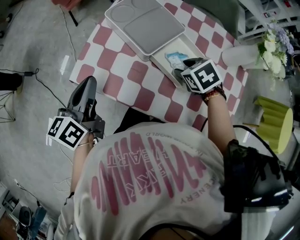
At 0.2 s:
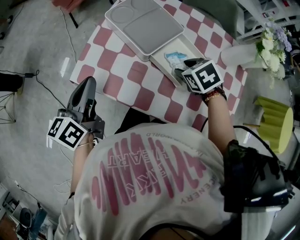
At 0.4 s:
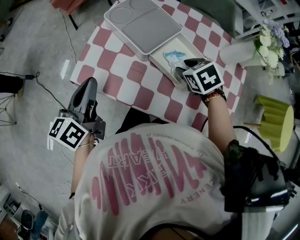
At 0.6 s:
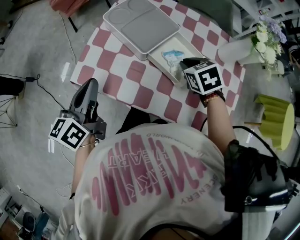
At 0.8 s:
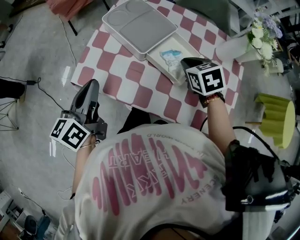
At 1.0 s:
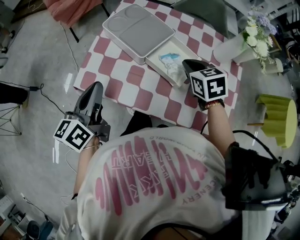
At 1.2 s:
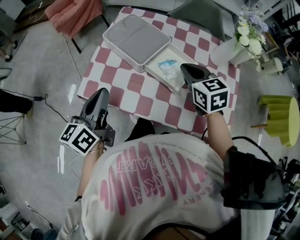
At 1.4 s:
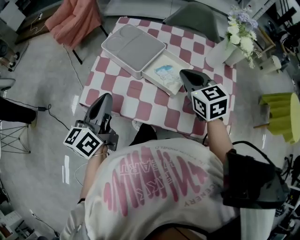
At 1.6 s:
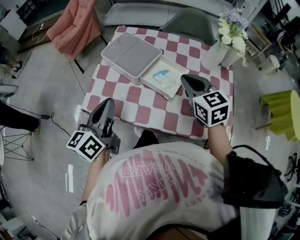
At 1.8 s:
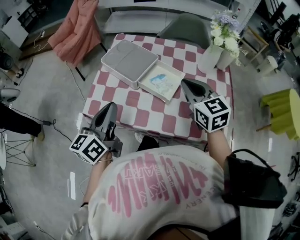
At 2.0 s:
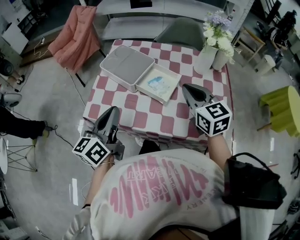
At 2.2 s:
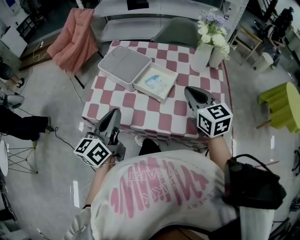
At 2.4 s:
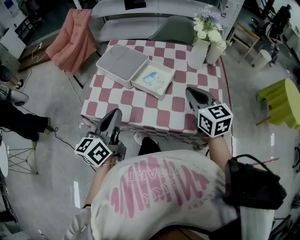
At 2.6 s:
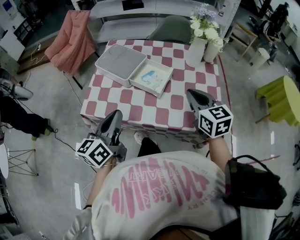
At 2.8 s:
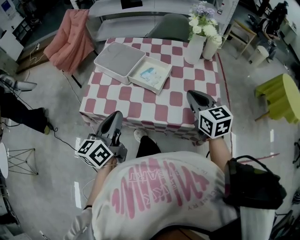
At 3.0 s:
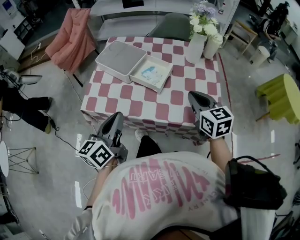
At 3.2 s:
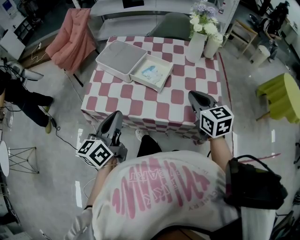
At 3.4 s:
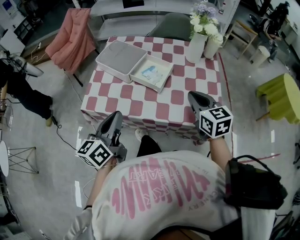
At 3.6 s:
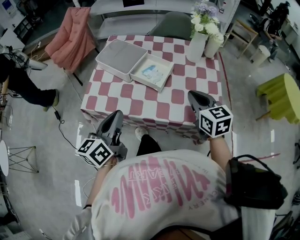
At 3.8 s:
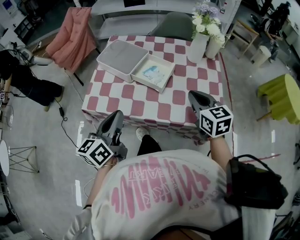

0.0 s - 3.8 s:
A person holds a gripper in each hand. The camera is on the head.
0.0 s - 1.2 s: The right gripper travels upward by about 10 cm, tilts its fingers some 40 degrees upward, and closes; the left gripper shifts by approximately 5 cm.
1.2 s - 2.6 s: The right gripper travels backward and to the right by approximately 20 cm. The left gripper is displaced to the right and backward by approximately 15 cm.
2.6 s - 3.8 s: There are only small adjustments of the grippers.

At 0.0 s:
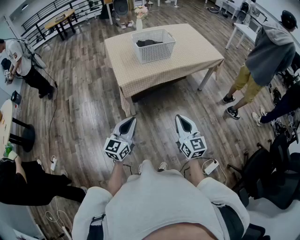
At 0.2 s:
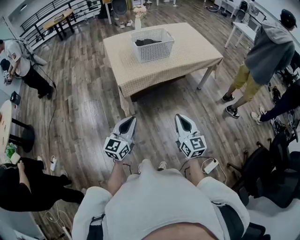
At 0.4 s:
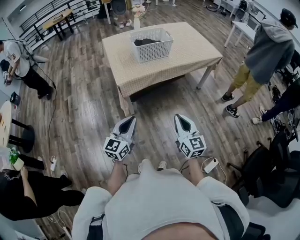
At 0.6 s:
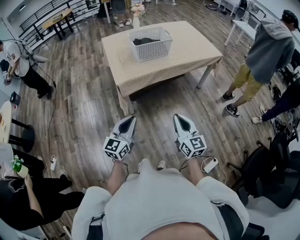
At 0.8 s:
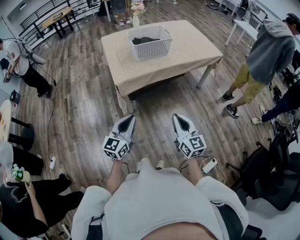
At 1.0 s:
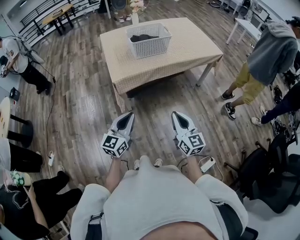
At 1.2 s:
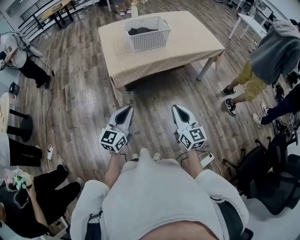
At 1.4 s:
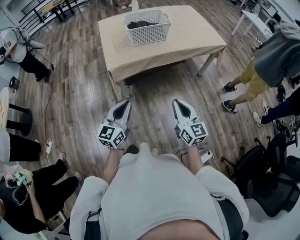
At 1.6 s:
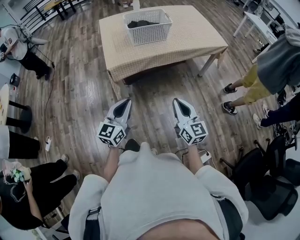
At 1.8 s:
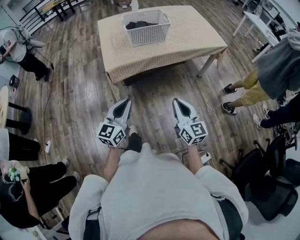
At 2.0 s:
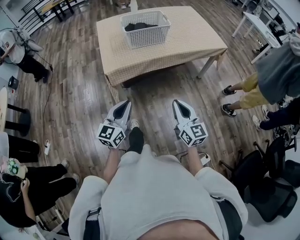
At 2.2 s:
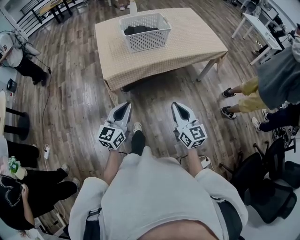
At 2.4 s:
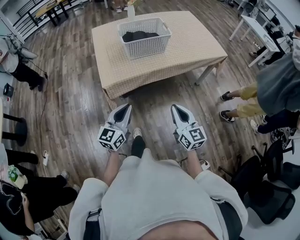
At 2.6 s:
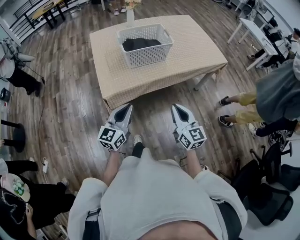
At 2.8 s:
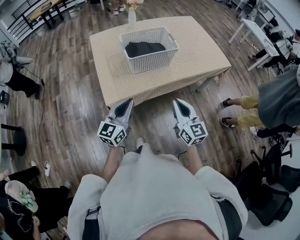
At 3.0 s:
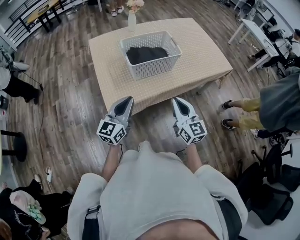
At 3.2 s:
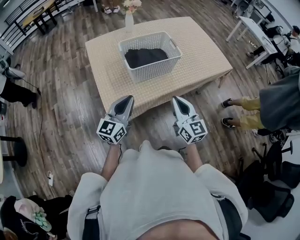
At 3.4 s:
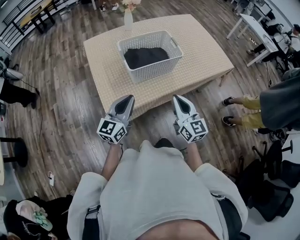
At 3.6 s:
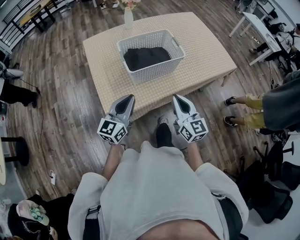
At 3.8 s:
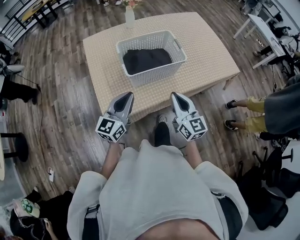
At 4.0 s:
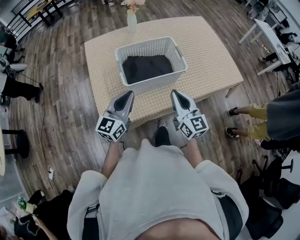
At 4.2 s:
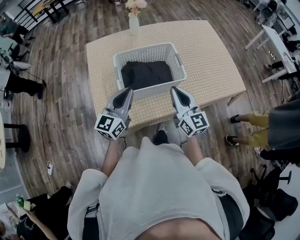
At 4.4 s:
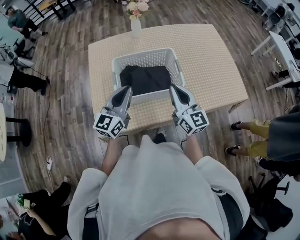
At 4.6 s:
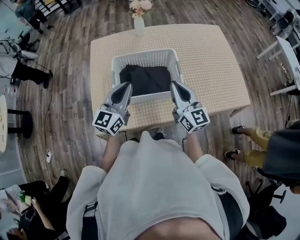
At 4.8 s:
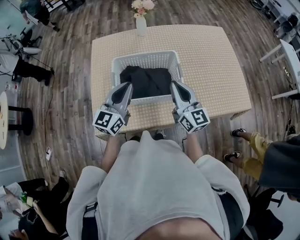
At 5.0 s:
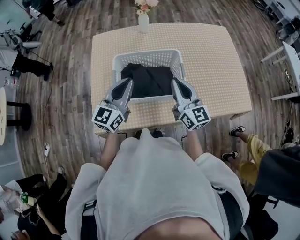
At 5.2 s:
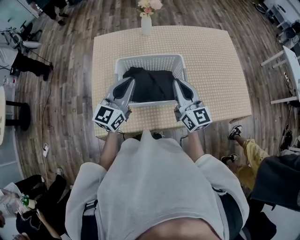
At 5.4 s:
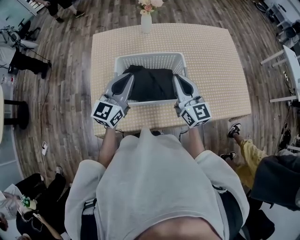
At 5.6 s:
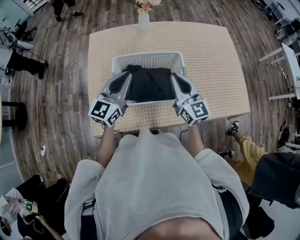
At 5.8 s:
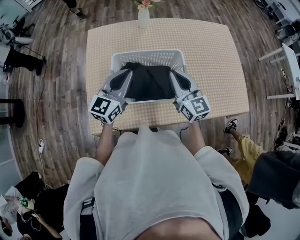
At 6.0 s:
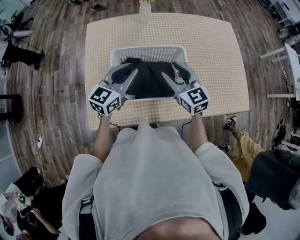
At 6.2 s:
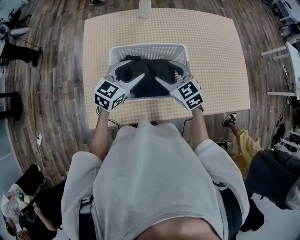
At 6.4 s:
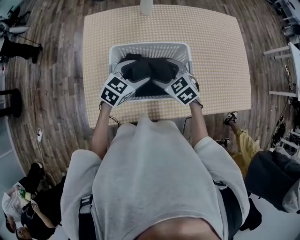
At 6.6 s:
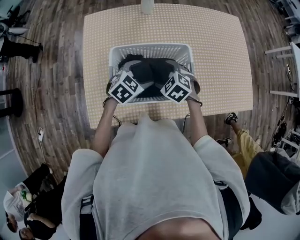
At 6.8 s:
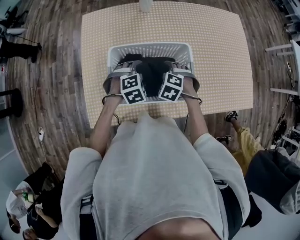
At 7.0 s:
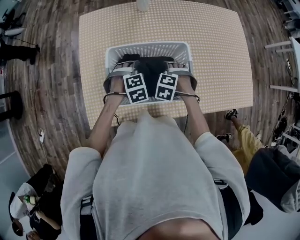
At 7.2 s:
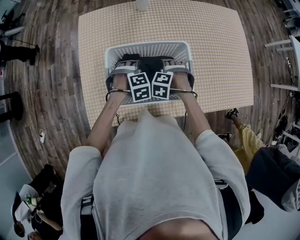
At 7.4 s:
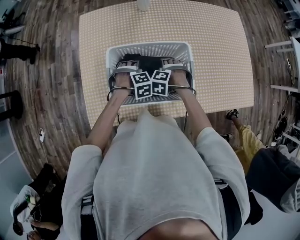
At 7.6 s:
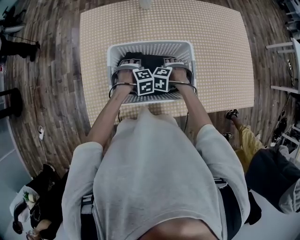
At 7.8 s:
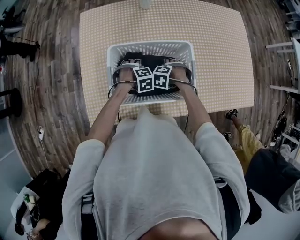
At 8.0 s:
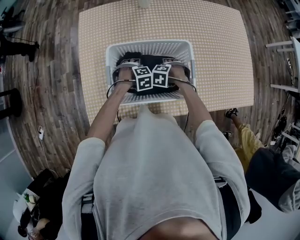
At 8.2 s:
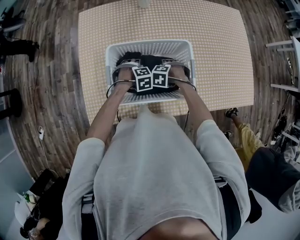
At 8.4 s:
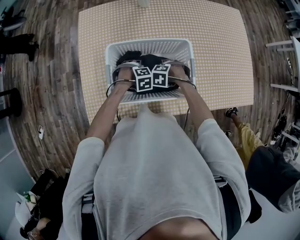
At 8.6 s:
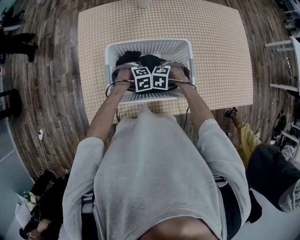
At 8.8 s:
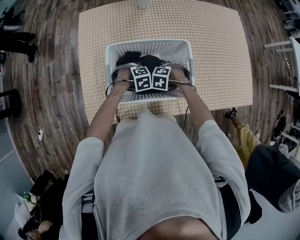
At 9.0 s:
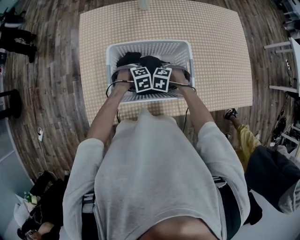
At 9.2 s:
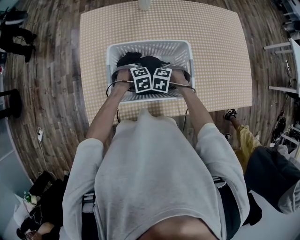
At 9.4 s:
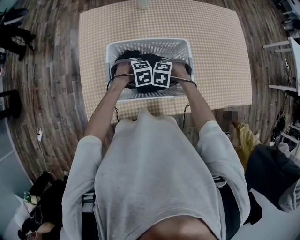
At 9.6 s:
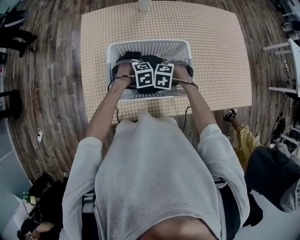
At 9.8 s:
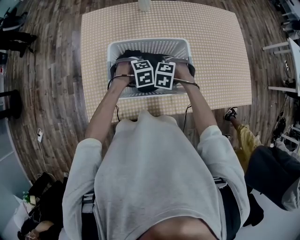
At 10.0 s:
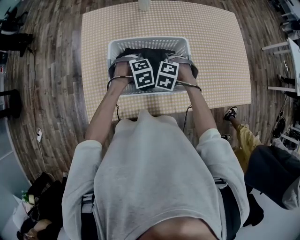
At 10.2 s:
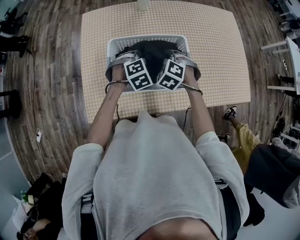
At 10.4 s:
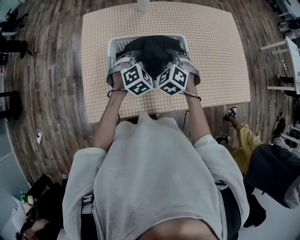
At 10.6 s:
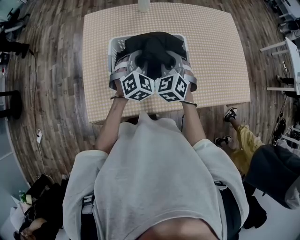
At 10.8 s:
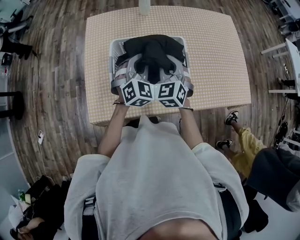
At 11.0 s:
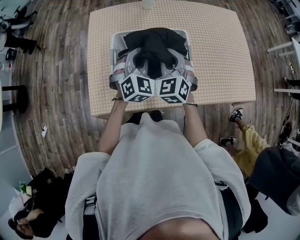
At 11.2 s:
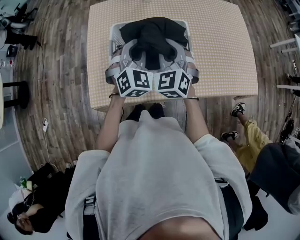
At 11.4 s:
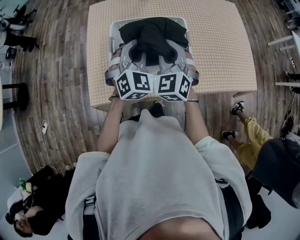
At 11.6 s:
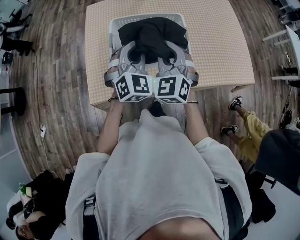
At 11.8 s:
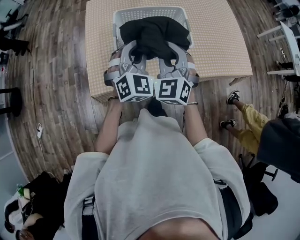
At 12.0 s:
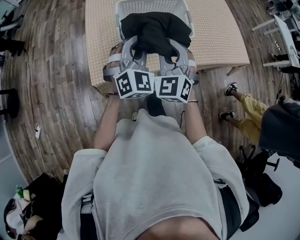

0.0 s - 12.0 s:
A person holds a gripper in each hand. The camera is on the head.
0.0 s - 1.6 s: The grippers both shift to the right and forward by some 10 cm.
1.6 s - 3.0 s: Both grippers travel together forward, some 35 cm.
3.0 s - 4.4 s: Both grippers travel together forward, some 30 cm.
4.4 s - 6.0 s: The grippers both shift forward by roughly 15 cm. The right gripper rotates approximately 30 degrees, and opens up.
6.0 s - 7.6 s: The grippers both shift downward by some 25 cm. The right gripper angles its fingers downward, by approximately 70 degrees, and opens its fingers, while the left gripper angles its fingers downward, by about 70 degrees, and opens.
7.6 s - 9.0 s: The left gripper closes. The right gripper closes its fingers.
9.0 s - 10.4 s: The two grippers go about 20 cm upward. The right gripper tips its fingers upward by approximately 40 degrees. The left gripper tips its fingers upward by roughly 40 degrees.
10.4 s - 12.0 s: Both grippers move backward and upward, about 30 cm. The right gripper angles its fingers upward, by some 30 degrees, while the left gripper points its fingers about 30 degrees further upward.

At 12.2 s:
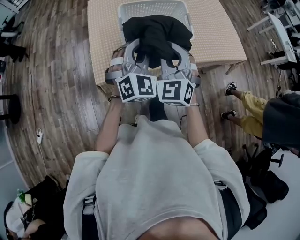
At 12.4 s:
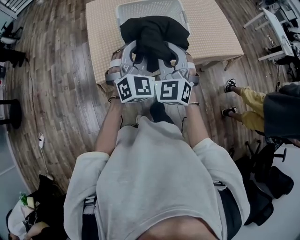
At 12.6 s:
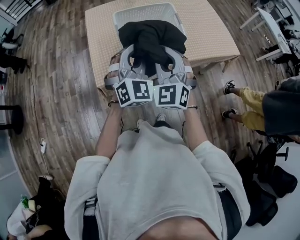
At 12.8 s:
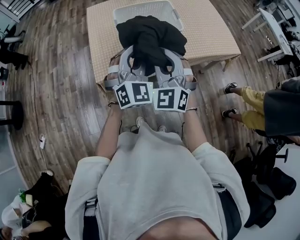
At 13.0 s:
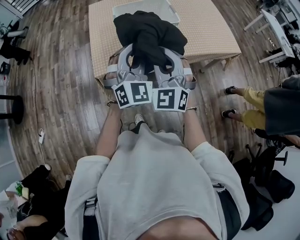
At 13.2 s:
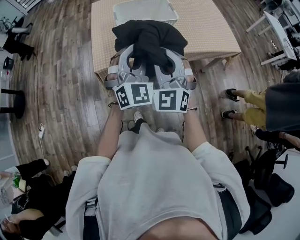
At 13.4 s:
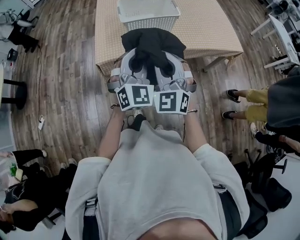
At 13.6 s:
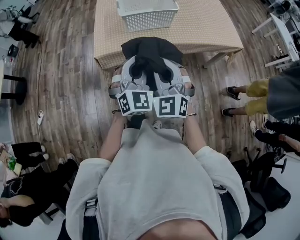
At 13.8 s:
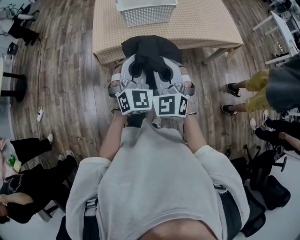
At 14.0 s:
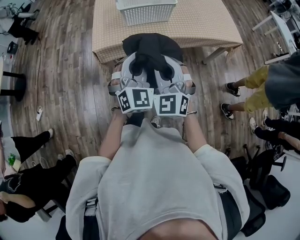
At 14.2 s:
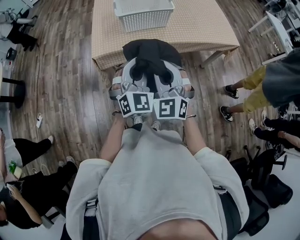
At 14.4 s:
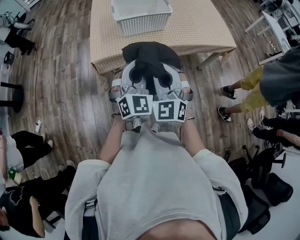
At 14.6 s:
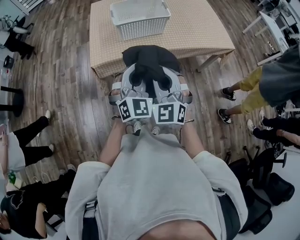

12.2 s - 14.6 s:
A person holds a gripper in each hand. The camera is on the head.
12.2 s - 13.4 s: Both grippers move backward, about 20 cm.
13.4 s - 14.6 s: The two grippers go roughly 5 cm backward.

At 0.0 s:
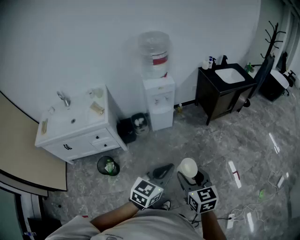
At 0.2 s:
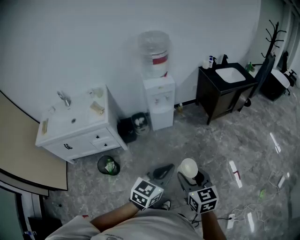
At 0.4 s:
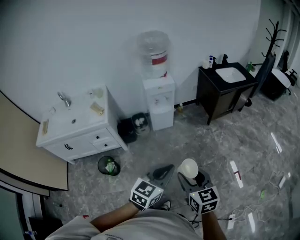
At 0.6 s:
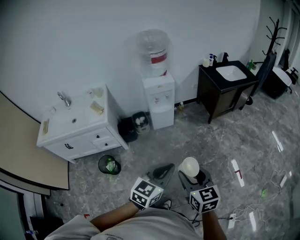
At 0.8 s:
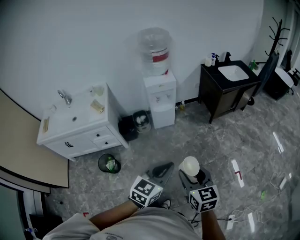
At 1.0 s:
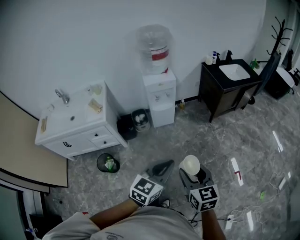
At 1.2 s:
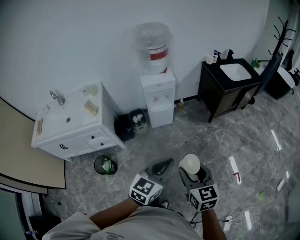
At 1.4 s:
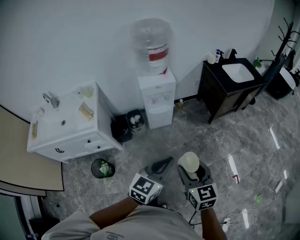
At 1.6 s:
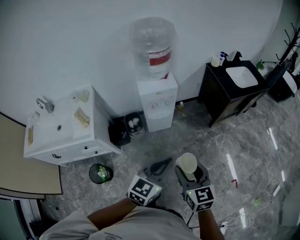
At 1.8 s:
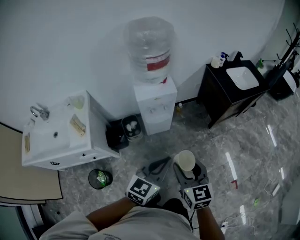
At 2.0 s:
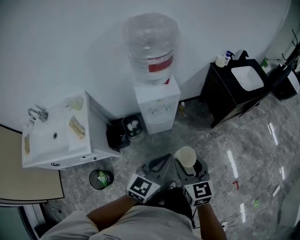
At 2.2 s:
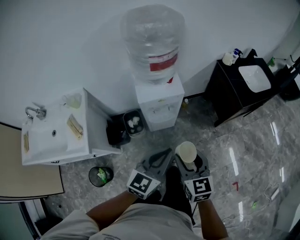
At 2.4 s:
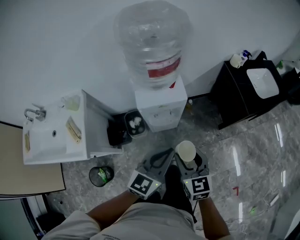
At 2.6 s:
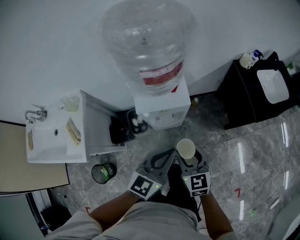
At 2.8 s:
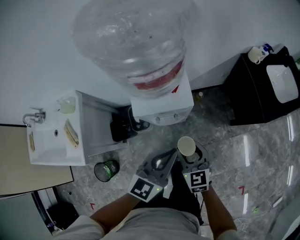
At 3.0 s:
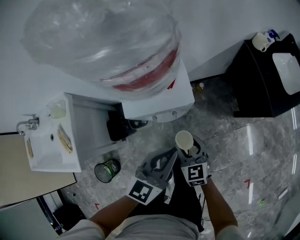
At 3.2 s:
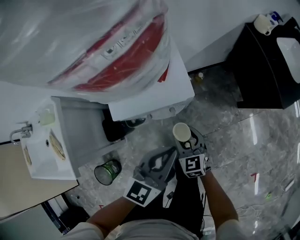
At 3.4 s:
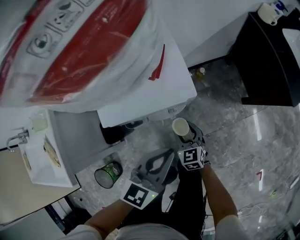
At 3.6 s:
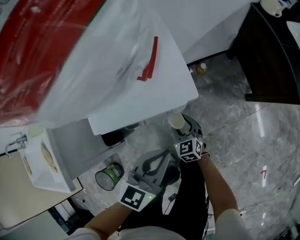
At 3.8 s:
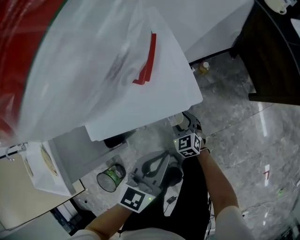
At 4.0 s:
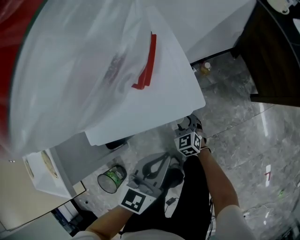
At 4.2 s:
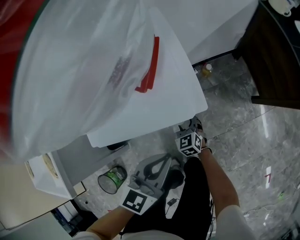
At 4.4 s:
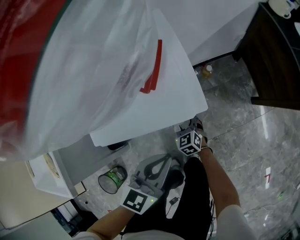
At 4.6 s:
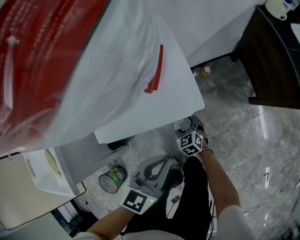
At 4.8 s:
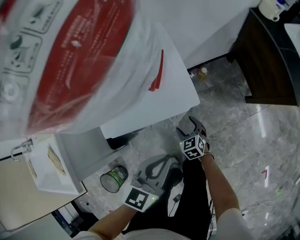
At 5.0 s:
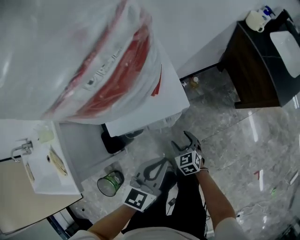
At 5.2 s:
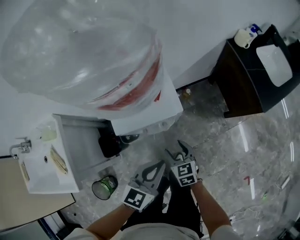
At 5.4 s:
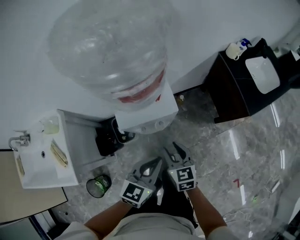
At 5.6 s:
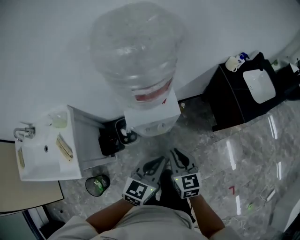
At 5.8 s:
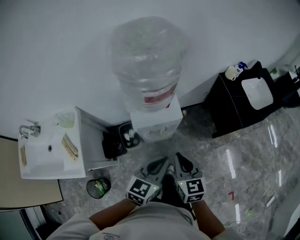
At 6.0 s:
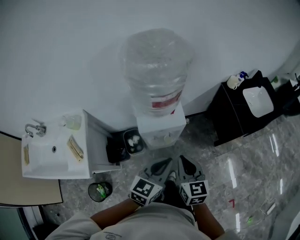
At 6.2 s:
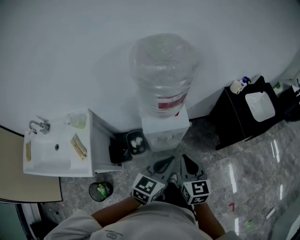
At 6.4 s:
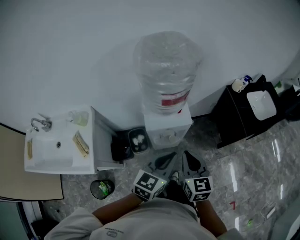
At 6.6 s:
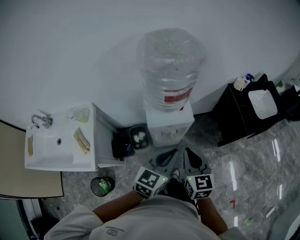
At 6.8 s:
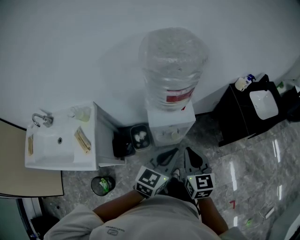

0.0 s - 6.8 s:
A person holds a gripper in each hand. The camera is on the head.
0.0 s - 1.4 s: Both grippers travel together forward, approximately 20 cm.
1.4 s - 2.8 s: The pair of grippers is taken forward, some 50 cm. The right gripper travels downward by roughly 20 cm.
2.8 s - 4.0 s: The right gripper travels downward by approximately 40 cm. Meanwhile the left gripper heads downward, covering approximately 30 cm.
4.0 s - 5.4 s: The left gripper goes about 20 cm upward, while the right gripper is displaced upward by approximately 40 cm.
5.4 s - 6.8 s: The two grippers go approximately 20 cm upward. The right gripper closes its fingers.
